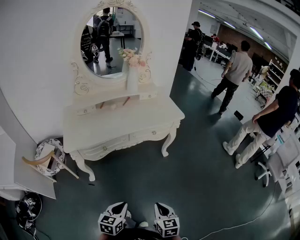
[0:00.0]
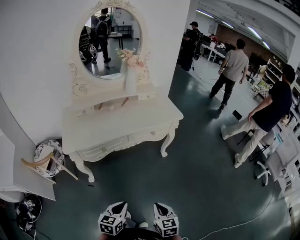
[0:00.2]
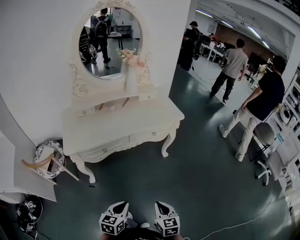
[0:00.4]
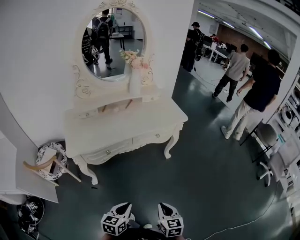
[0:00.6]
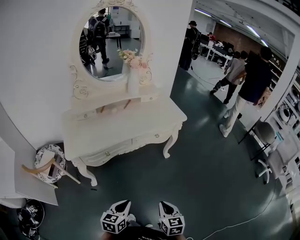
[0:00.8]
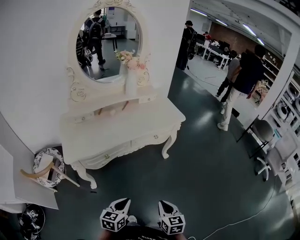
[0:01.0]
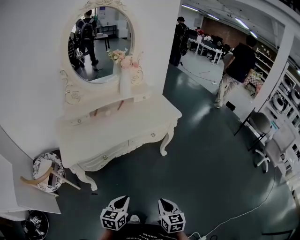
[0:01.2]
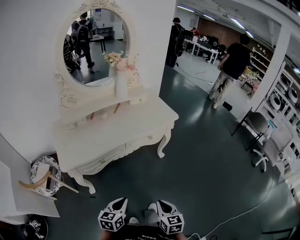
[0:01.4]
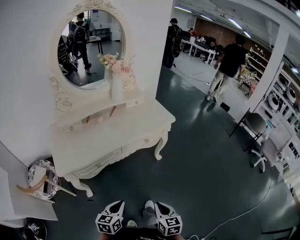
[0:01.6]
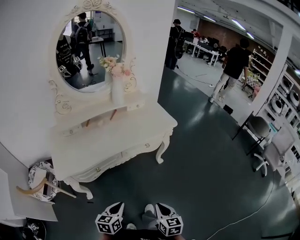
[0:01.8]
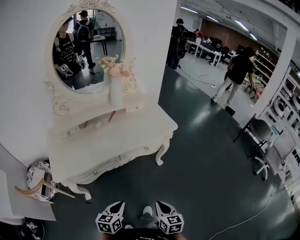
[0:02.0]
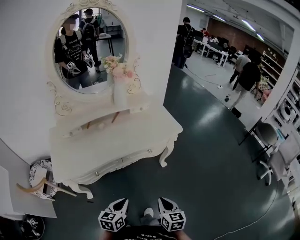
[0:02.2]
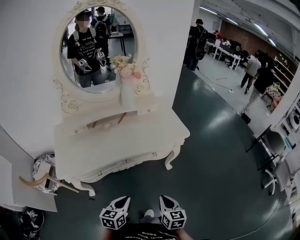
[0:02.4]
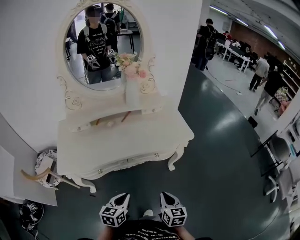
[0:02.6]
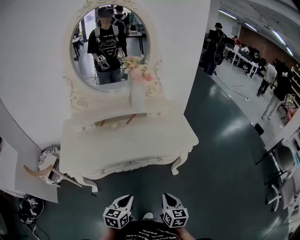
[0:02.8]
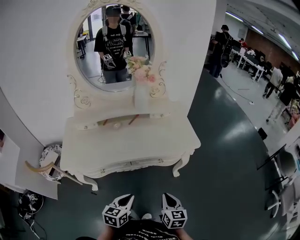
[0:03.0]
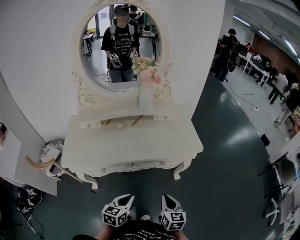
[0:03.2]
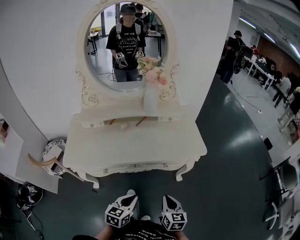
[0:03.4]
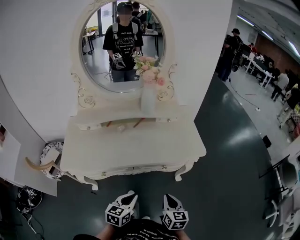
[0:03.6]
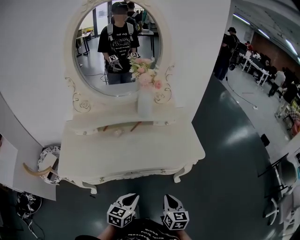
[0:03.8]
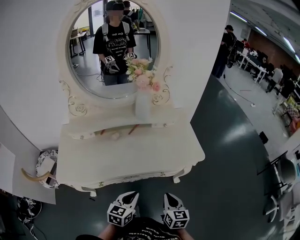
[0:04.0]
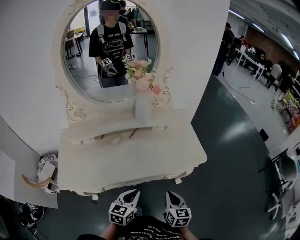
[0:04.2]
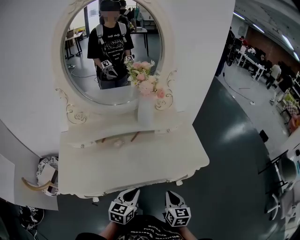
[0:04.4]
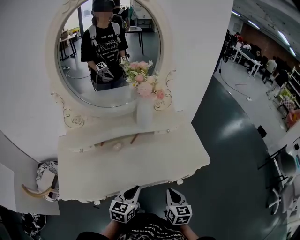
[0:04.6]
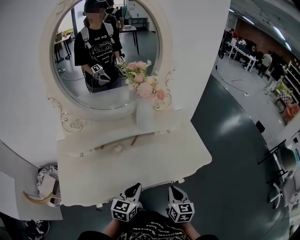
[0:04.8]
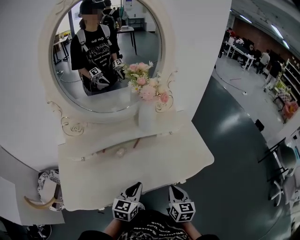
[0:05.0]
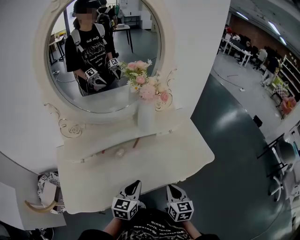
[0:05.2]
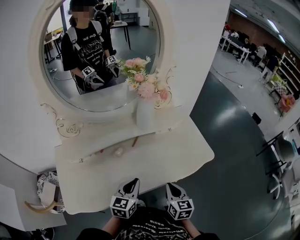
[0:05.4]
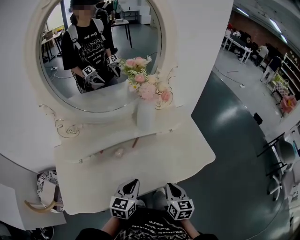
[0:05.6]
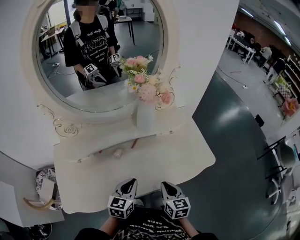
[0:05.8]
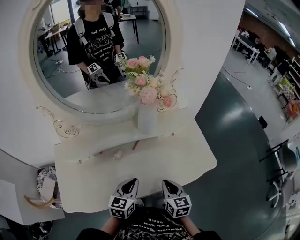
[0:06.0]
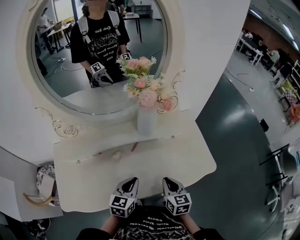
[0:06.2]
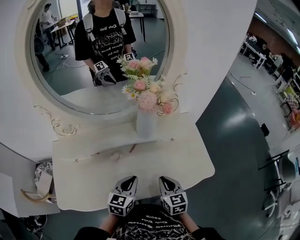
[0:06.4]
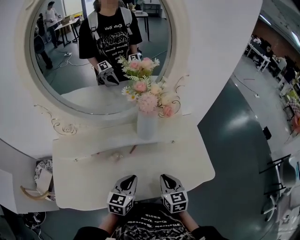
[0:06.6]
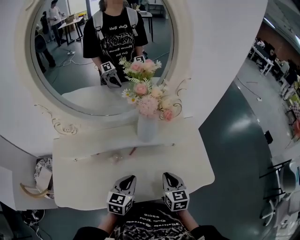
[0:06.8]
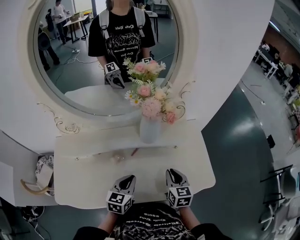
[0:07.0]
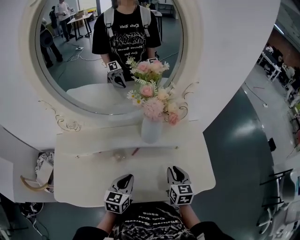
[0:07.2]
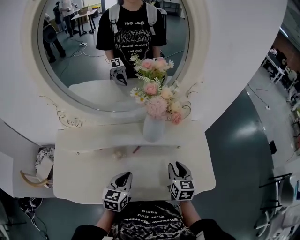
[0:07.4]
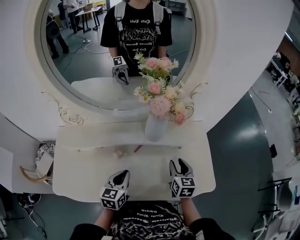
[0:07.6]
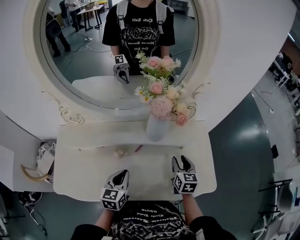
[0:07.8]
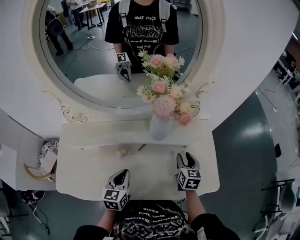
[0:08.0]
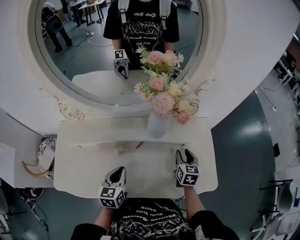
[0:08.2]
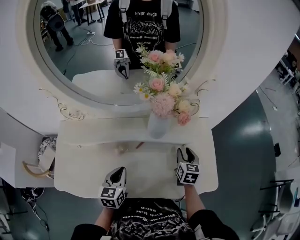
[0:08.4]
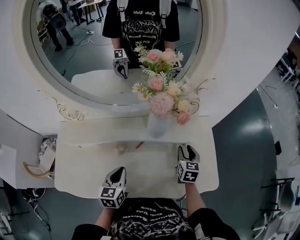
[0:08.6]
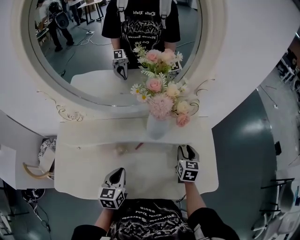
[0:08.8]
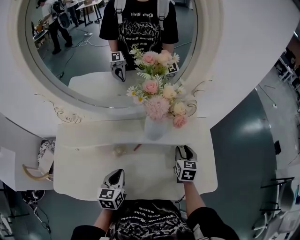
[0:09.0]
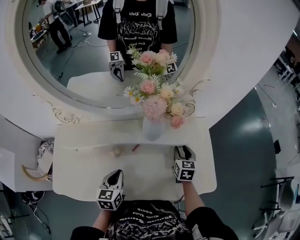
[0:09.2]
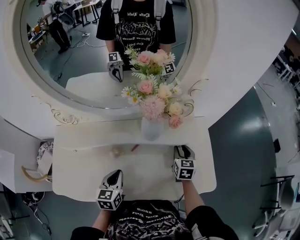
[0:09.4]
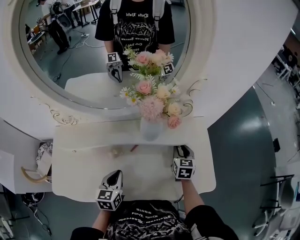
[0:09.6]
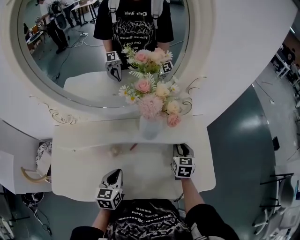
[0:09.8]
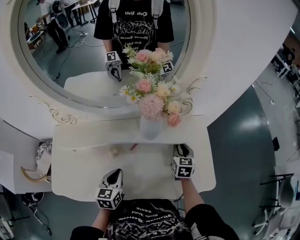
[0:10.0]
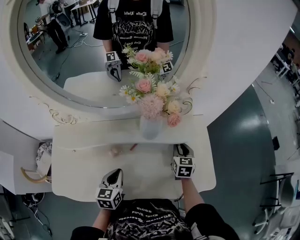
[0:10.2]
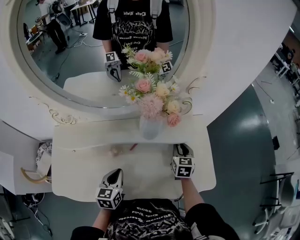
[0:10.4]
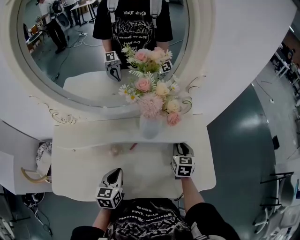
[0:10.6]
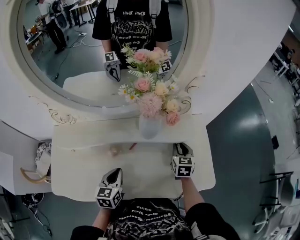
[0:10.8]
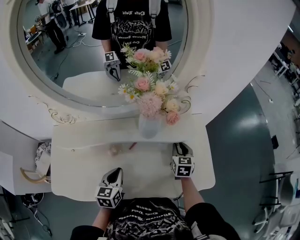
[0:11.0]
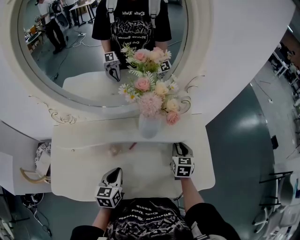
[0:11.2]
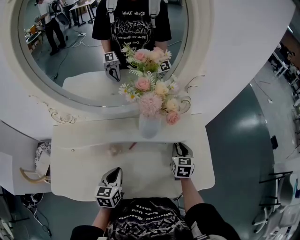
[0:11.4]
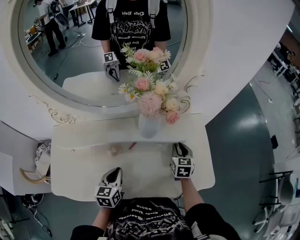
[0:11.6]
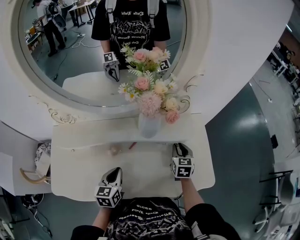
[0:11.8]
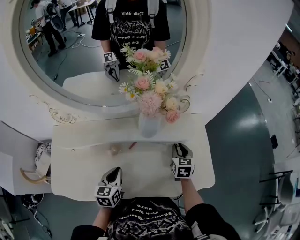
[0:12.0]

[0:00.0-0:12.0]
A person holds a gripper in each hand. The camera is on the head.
0:00.0 to 0:01.6: The right gripper heads forward, covering about 5 cm; the left gripper travels forward and to the left by about 10 cm.
0:01.6 to 0:03.0: The right gripper shifts approximately 25 cm forward. Meanwhile the left gripper shifts some 20 cm forward and to the right.
0:03.0 to 0:04.4: Both grippers travel together forward, about 15 cm.
0:04.4 to 0:06.0: The two grippers go approximately 15 cm forward and to the left.
0:06.0 to 0:07.6: The left gripper is displaced forward by some 5 cm. Meanwhile the right gripper heads forward, covering roughly 15 cm, and opens up.
0:07.6 to 0:09.0: The right gripper travels forward by about 5 cm.
0:09.0 to 0:10.4: Both grippers stay put.
0:10.4 to 0:12.0: There are only small adjustments of the grippers.

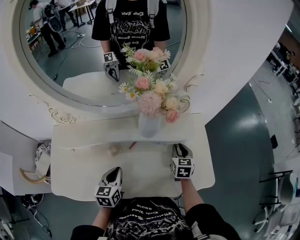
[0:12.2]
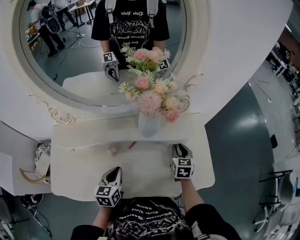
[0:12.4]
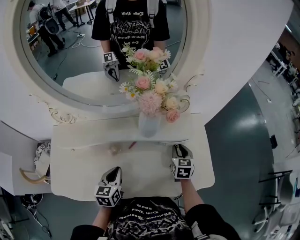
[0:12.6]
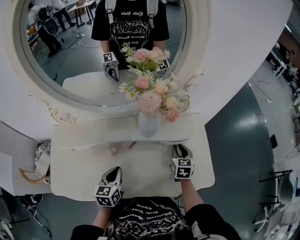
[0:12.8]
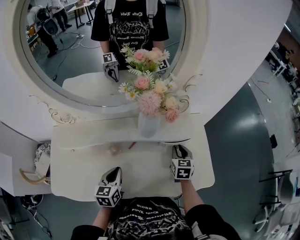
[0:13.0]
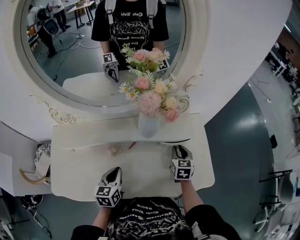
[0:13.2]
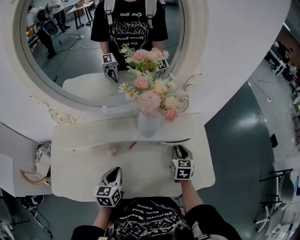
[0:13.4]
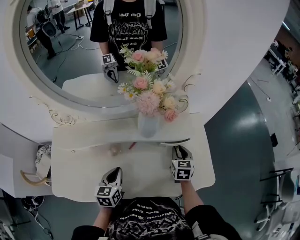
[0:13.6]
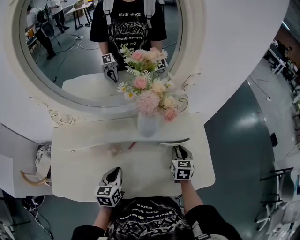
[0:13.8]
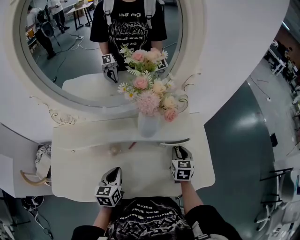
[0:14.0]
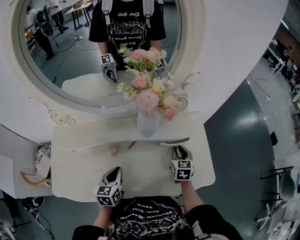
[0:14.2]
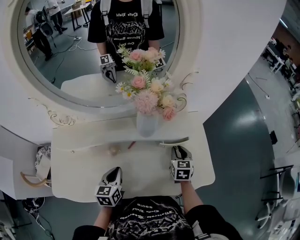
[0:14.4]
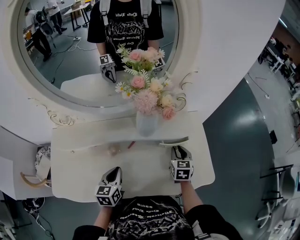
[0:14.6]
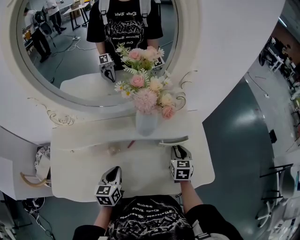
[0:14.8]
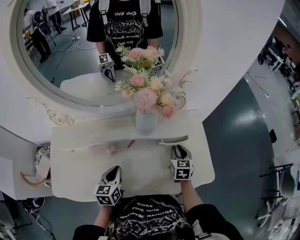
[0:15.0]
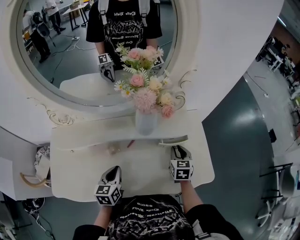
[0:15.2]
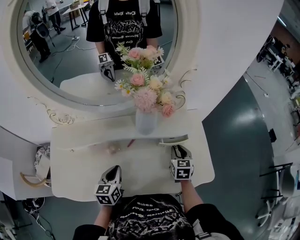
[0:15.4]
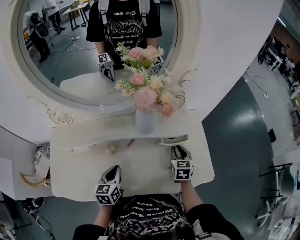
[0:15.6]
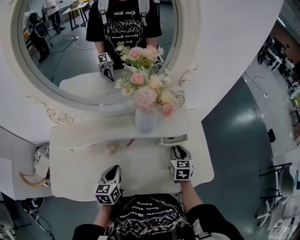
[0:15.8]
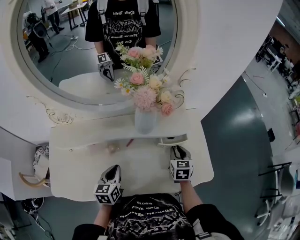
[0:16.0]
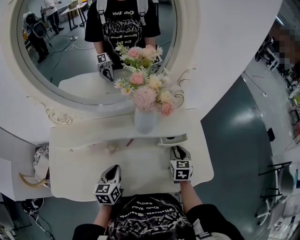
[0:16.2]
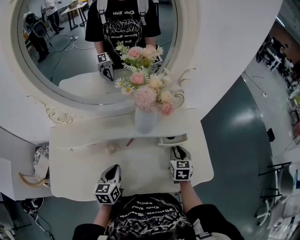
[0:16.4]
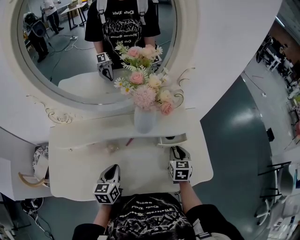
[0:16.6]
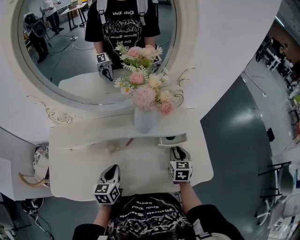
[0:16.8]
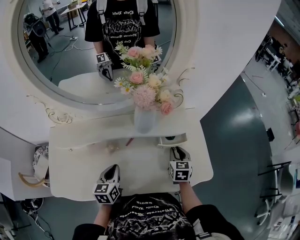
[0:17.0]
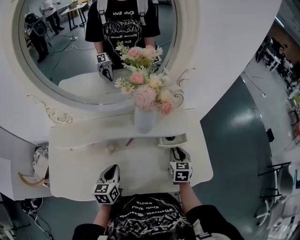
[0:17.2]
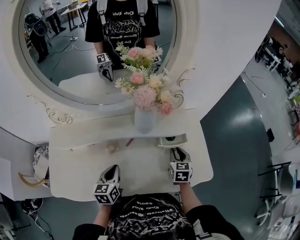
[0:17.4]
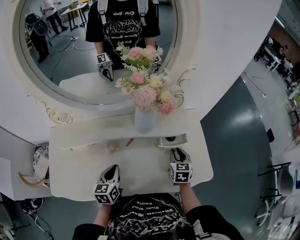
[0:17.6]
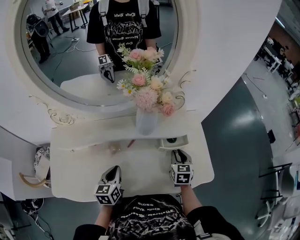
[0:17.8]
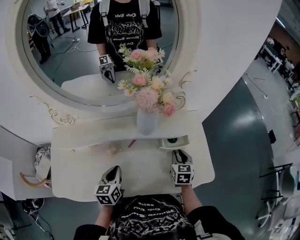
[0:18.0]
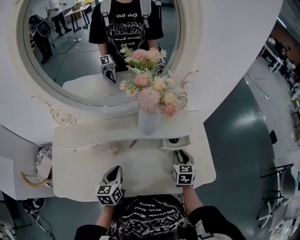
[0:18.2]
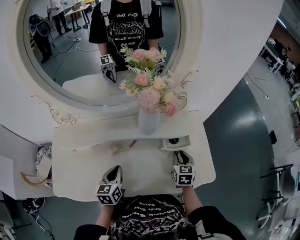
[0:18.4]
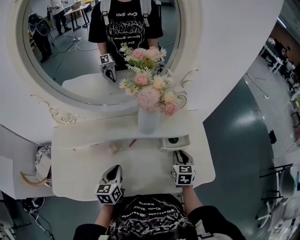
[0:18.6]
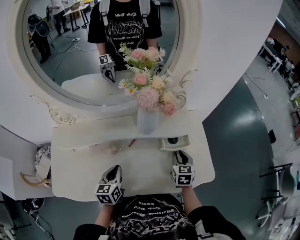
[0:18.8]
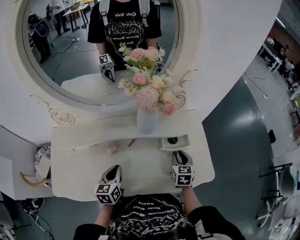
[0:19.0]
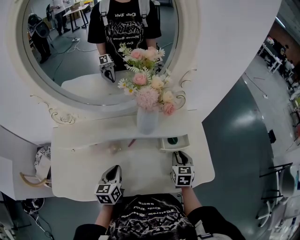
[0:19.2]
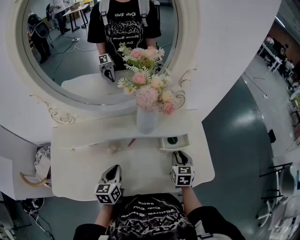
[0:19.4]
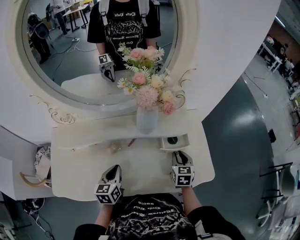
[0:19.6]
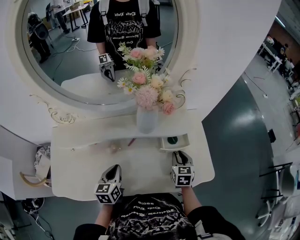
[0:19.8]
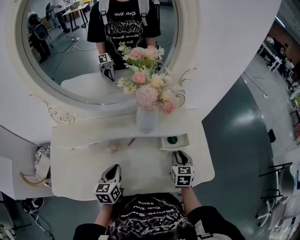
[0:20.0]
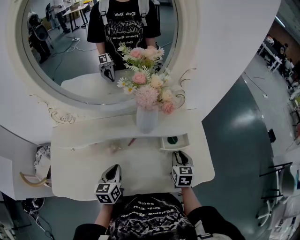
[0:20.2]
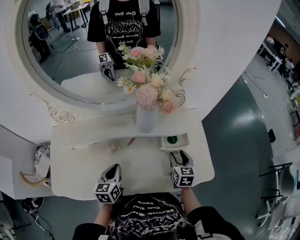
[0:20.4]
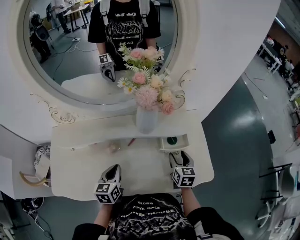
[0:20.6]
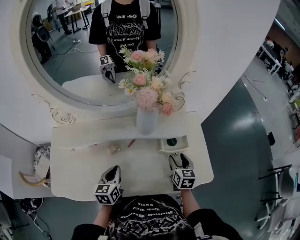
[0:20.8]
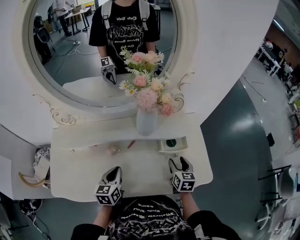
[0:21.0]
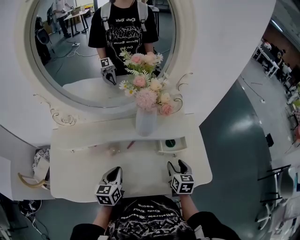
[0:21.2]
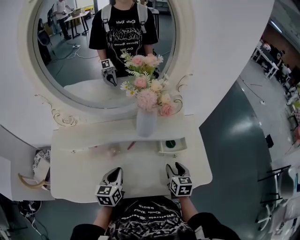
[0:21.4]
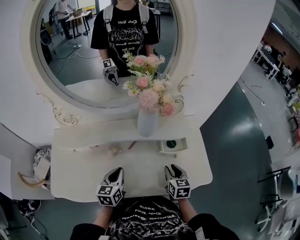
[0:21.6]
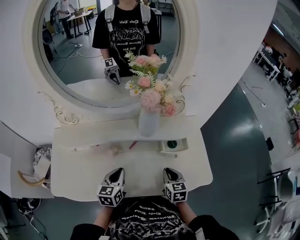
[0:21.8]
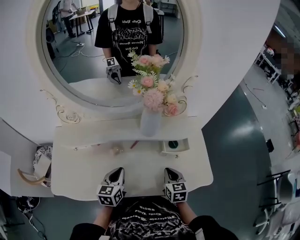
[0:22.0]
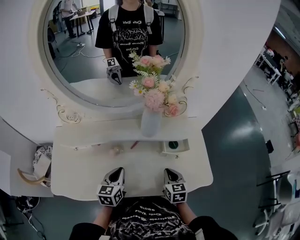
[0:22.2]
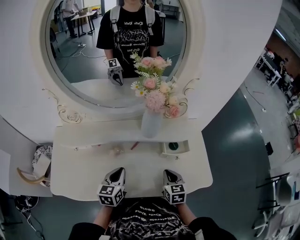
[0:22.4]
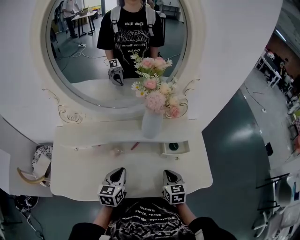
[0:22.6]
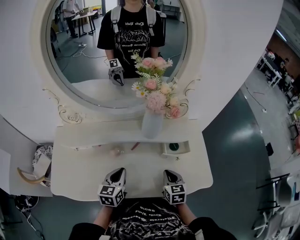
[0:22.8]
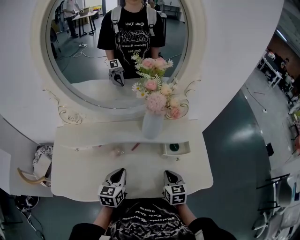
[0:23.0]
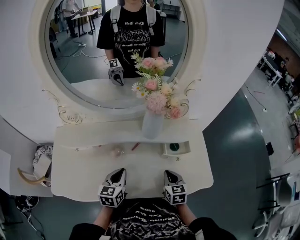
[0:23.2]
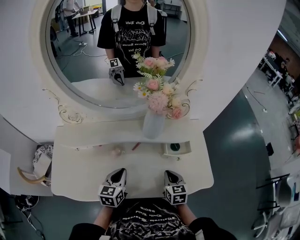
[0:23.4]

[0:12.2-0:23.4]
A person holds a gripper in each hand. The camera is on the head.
0:12.2 to 0:13.8: The two grippers keep their place.
0:13.8 to 0:17.0: There are only small adjustments of the grippers.
0:17.0 to 0:18.6: Both grippers stay about where they are.
0:18.6 to 0:20.2: Both grippers stay put.
0:20.2 to 0:21.8: The right gripper goes about 10 cm backward and to the left, and opens, then closes again.
0:21.8 to 0:23.4: Neither gripper changes place.

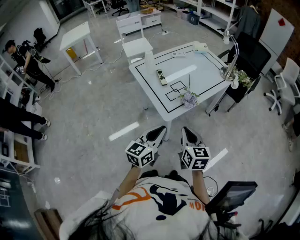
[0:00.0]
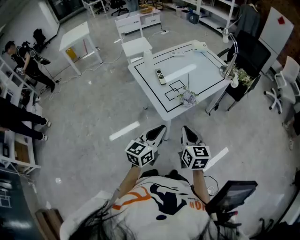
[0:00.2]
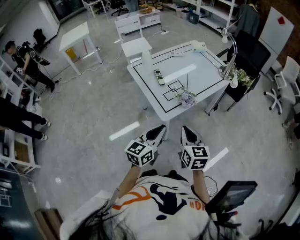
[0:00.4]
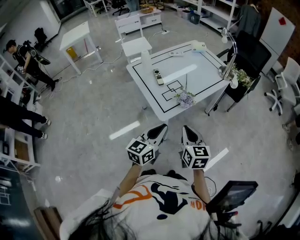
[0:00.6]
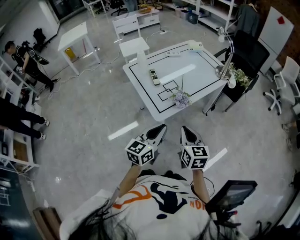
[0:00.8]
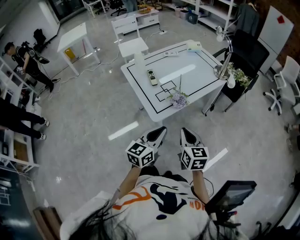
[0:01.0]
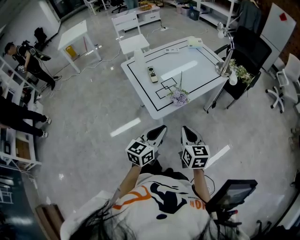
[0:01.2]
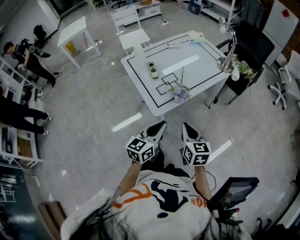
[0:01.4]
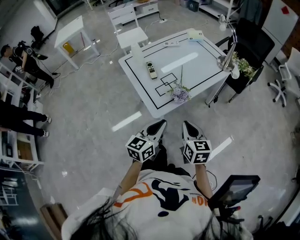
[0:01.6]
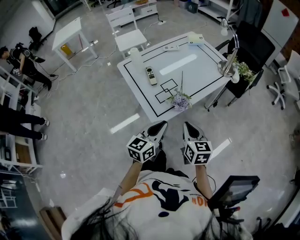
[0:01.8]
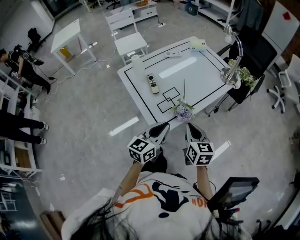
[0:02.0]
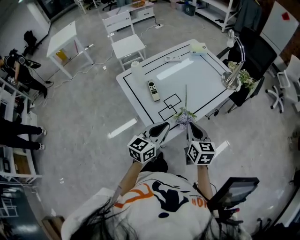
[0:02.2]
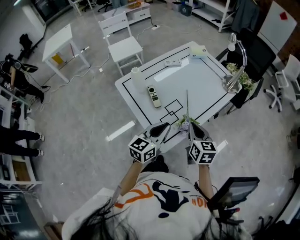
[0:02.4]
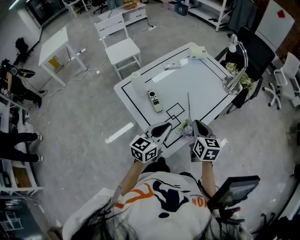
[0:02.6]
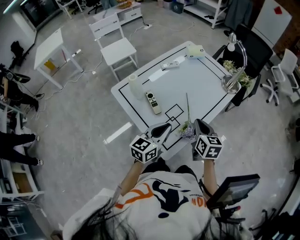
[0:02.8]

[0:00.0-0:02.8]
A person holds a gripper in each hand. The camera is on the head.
0:00.0 to 0:01.4: The two grippers go roughly 5 cm to the right.
0:01.4 to 0:02.8: The right gripper moves forward, some 25 cm, while the left gripper heads forward and to the left, covering about 25 cm.
